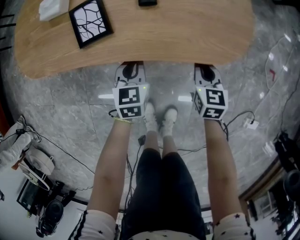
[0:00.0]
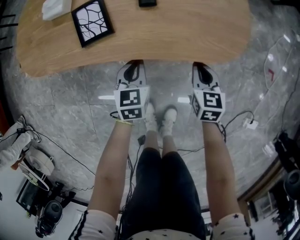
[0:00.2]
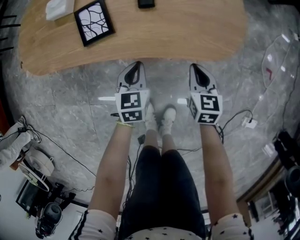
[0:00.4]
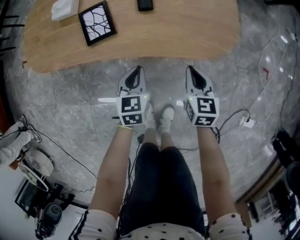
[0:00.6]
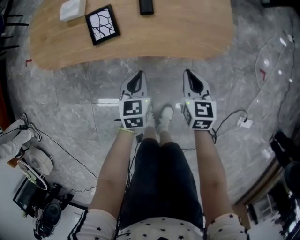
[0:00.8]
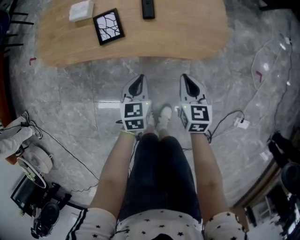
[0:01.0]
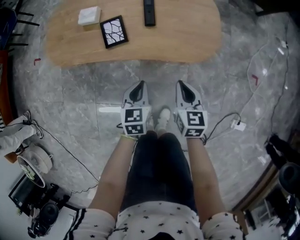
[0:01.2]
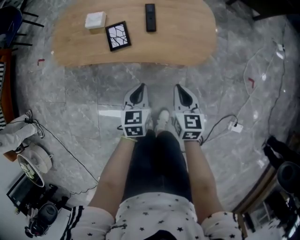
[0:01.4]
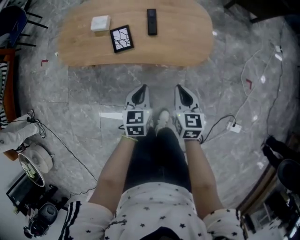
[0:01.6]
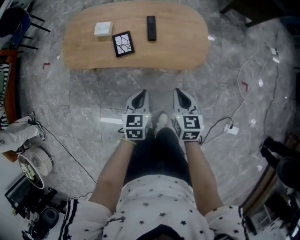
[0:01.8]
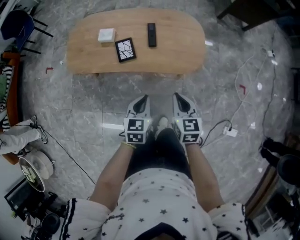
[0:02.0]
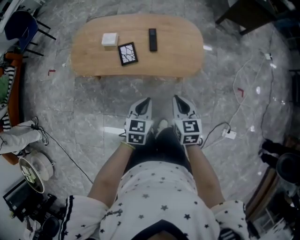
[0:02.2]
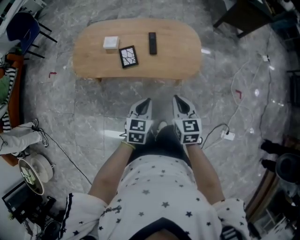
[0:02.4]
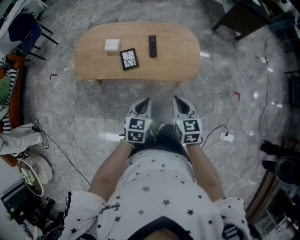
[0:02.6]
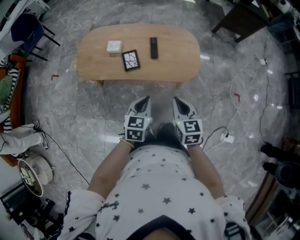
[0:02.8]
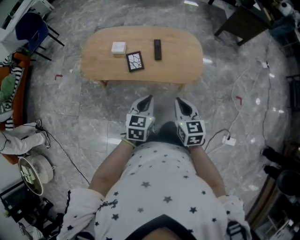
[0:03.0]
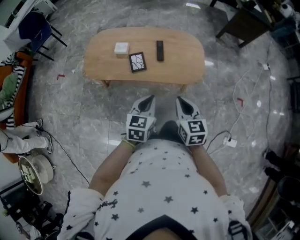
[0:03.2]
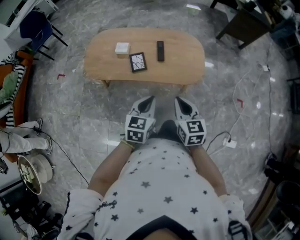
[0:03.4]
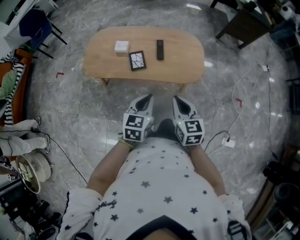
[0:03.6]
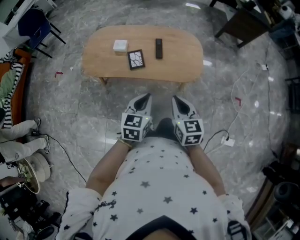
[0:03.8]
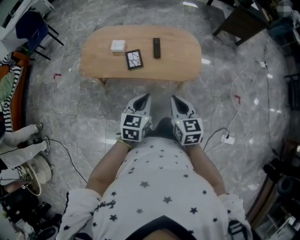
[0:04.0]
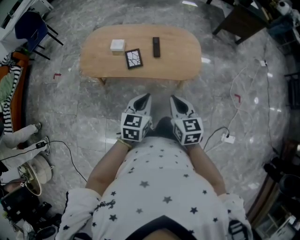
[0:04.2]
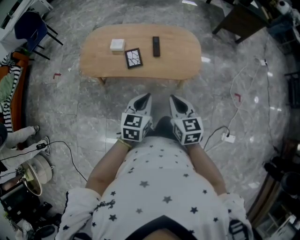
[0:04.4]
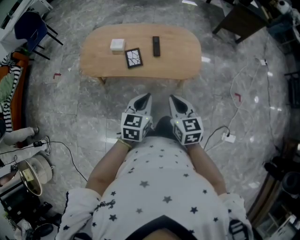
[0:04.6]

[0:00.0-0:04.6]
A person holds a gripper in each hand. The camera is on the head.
0:00.0 to 0:01.6: The right gripper moves upward, about 30 cm. Meanwhile the left gripper shifts some 30 cm upward and backward.
0:01.6 to 0:03.0: The two grippers go about 15 cm upward.
0:03.0 to 0:04.6: The grippers stay close to where they were, moving slightly.

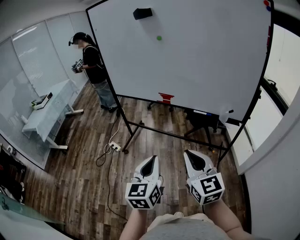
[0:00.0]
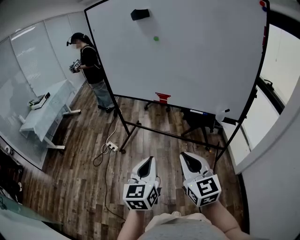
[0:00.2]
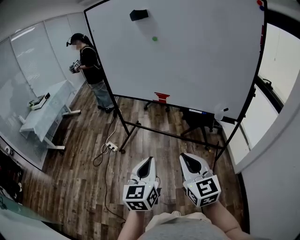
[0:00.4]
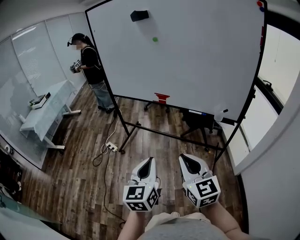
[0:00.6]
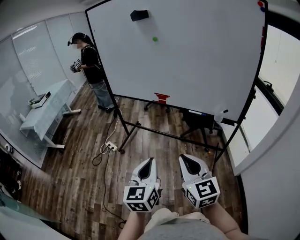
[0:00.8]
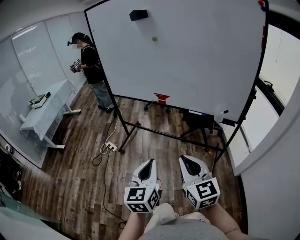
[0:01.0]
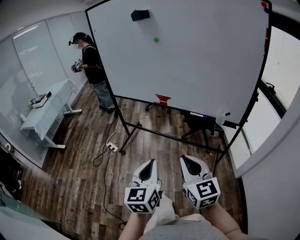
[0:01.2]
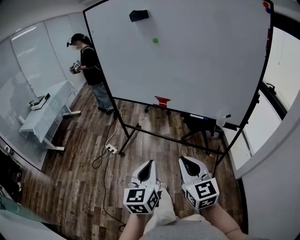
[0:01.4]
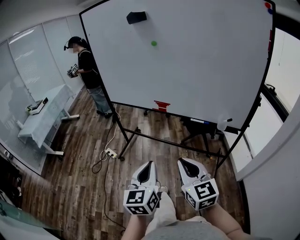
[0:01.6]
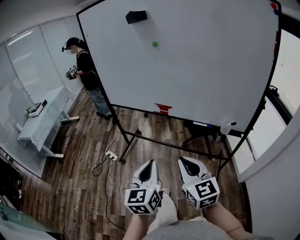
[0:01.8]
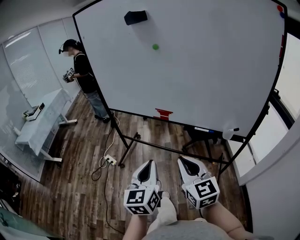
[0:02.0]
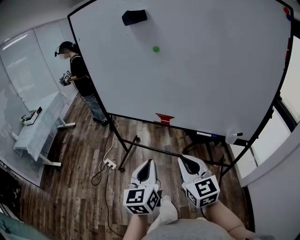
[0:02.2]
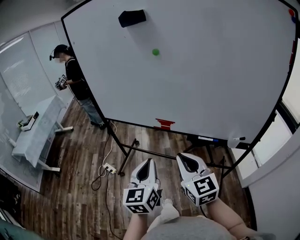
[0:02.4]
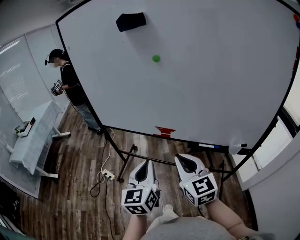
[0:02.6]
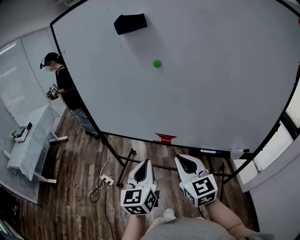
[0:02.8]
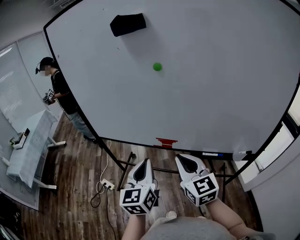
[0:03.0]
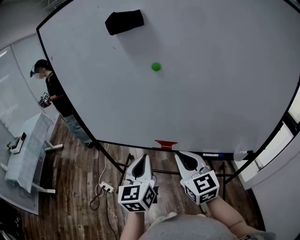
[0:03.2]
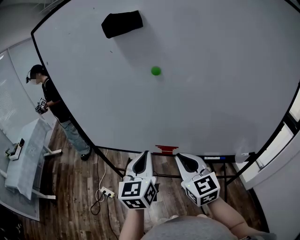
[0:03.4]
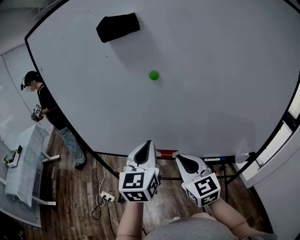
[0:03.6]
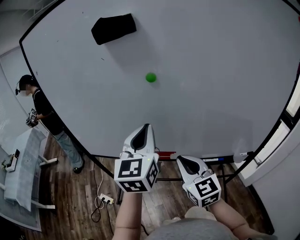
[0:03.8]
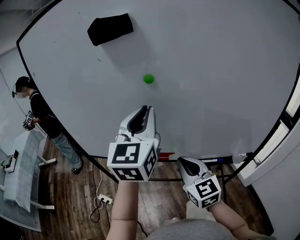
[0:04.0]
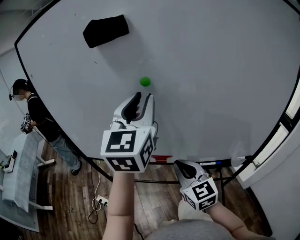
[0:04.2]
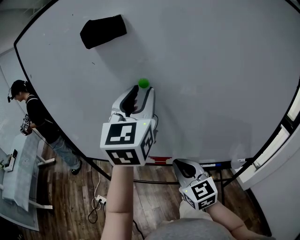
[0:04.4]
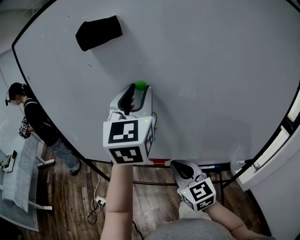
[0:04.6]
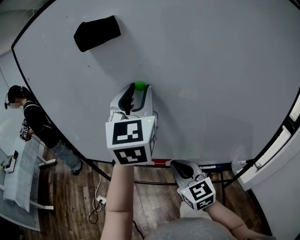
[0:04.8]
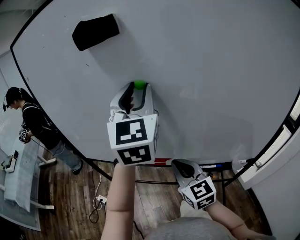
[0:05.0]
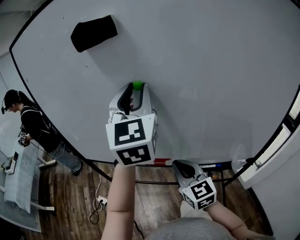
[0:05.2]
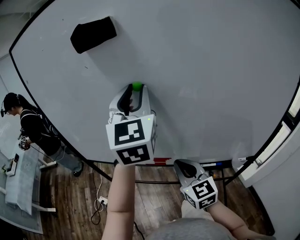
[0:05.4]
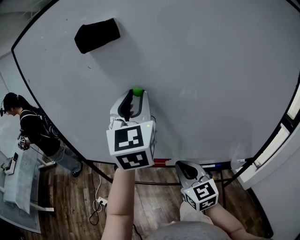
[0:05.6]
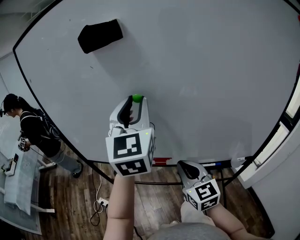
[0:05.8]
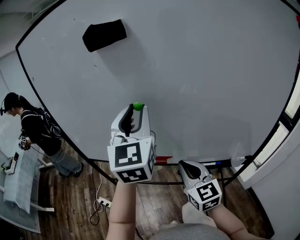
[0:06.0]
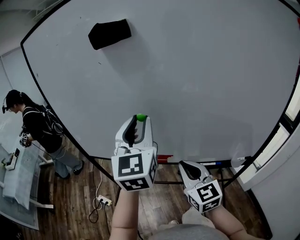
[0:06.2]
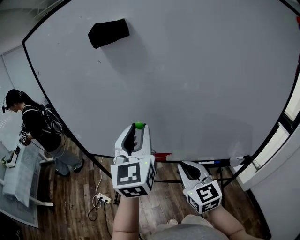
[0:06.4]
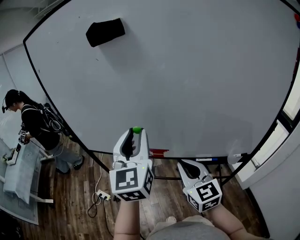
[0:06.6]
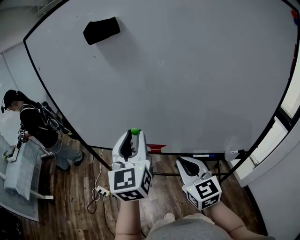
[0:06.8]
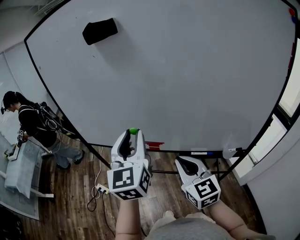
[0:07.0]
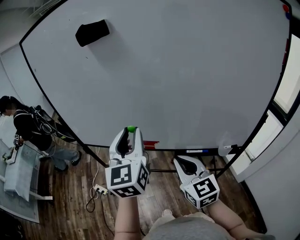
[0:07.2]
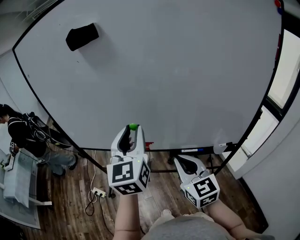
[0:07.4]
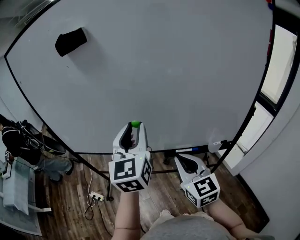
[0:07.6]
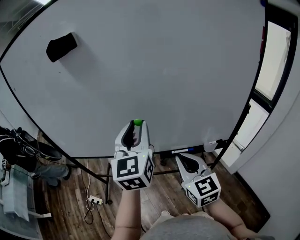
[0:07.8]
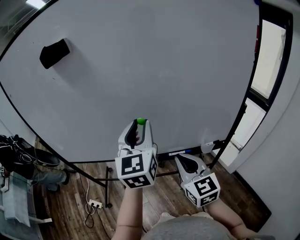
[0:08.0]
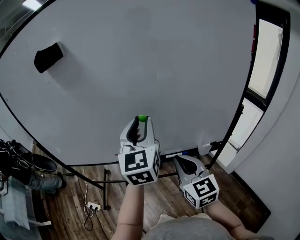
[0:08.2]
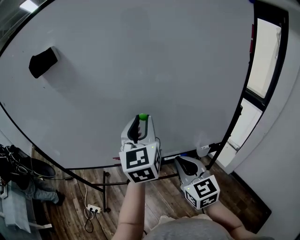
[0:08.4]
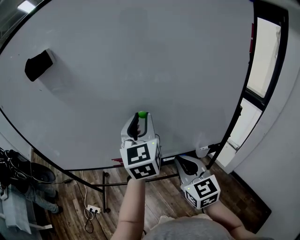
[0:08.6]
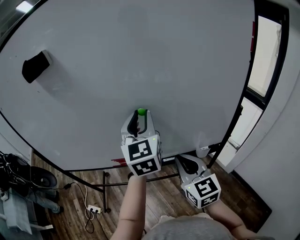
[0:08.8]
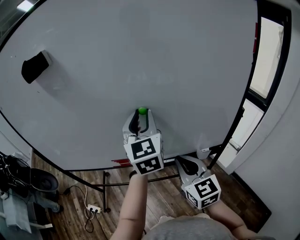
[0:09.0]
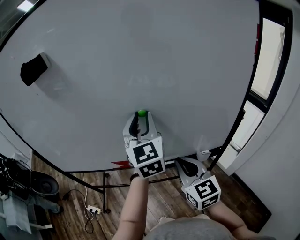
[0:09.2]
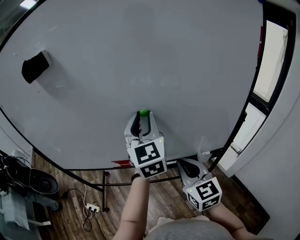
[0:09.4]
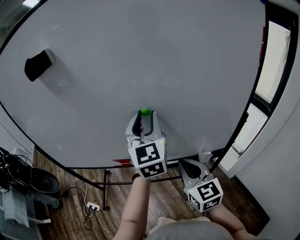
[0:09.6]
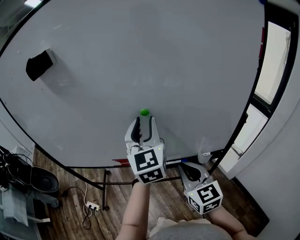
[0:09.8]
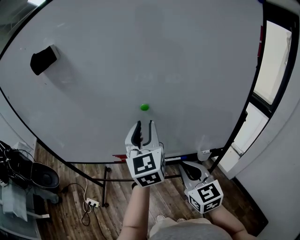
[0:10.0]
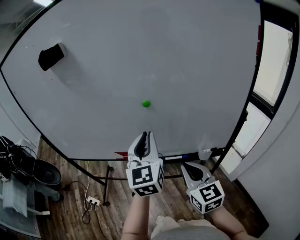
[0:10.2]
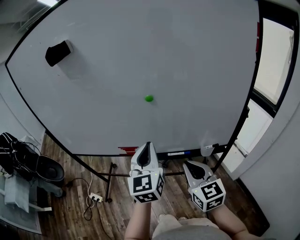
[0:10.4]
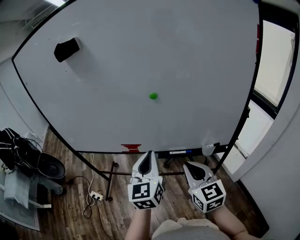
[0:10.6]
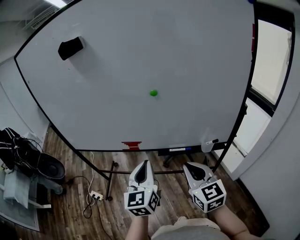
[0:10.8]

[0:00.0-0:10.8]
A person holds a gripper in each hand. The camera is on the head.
0:00.0 to 0:01.6: The grippers stay close to where they were, moving slightly.
0:01.6 to 0:03.0: Both grippers move forward, some 35 cm.
0:03.0 to 0:04.6: The left gripper is displaced upward and forward by roughly 30 cm, swivels roughly 30 degrees, and opens its fingers; the right gripper shifts about 10 cm forward.
0:04.6 to 0:06.2: The left gripper moves downward and backward, about 10 cm.
0:06.2 to 0:07.8: The two grippers go some 15 cm to the right and backward.
0:07.8 to 0:09.2: The right gripper shifts some 5 cm to the right, while the left gripper goes approximately 15 cm to the right and forward.
0:09.2 to 0:10.8: The right gripper goes approximately 10 cm backward. Meanwhile the left gripper shifts some 25 cm backward and downward, and closes.

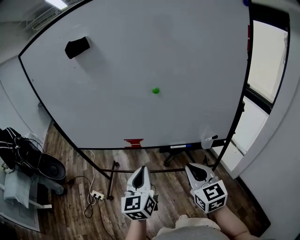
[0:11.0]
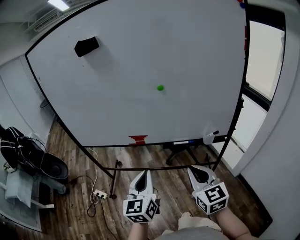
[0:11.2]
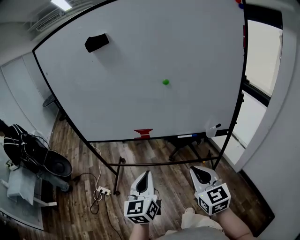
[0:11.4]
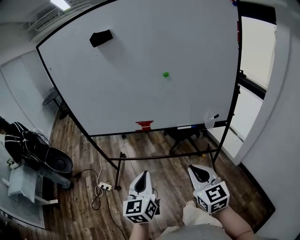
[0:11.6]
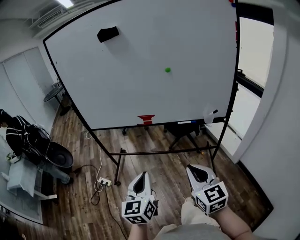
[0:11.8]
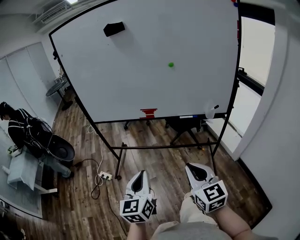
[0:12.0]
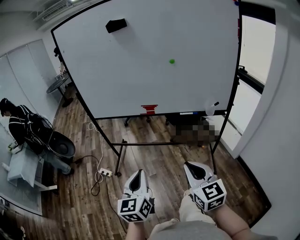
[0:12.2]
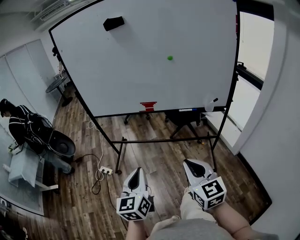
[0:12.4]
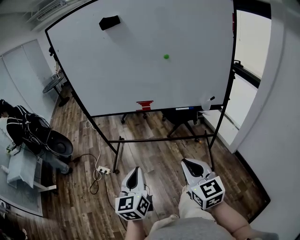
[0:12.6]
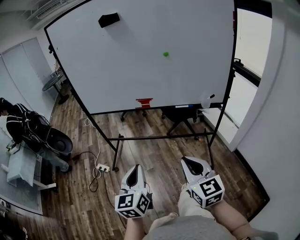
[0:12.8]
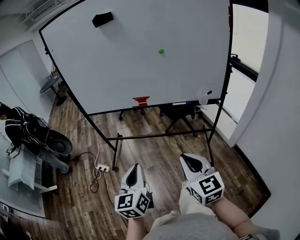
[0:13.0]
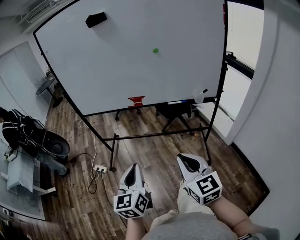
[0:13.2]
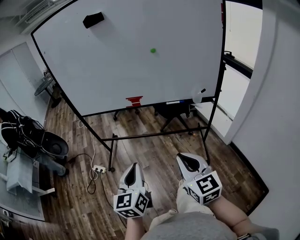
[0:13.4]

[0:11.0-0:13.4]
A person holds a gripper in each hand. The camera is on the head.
0:11.0 to 0:12.2: Both grippers travel together backward and to the left, approximately 30 cm.
0:12.2 to 0:13.4: The grippers make only small movements.

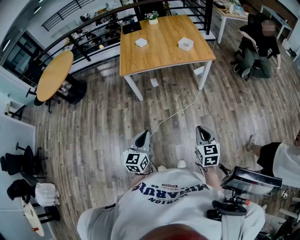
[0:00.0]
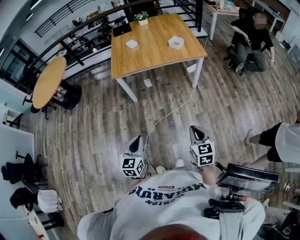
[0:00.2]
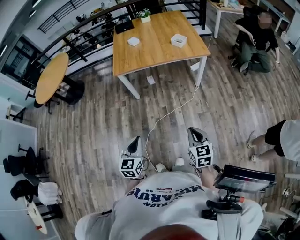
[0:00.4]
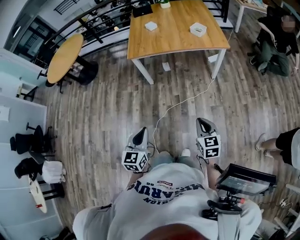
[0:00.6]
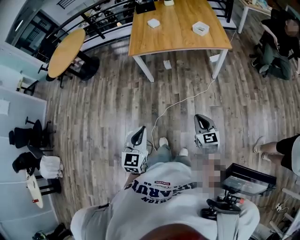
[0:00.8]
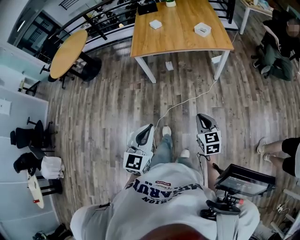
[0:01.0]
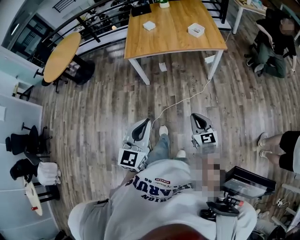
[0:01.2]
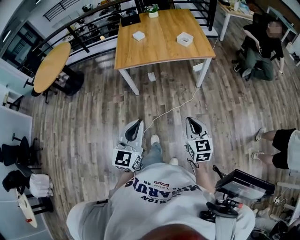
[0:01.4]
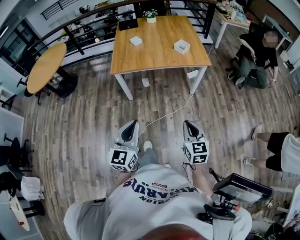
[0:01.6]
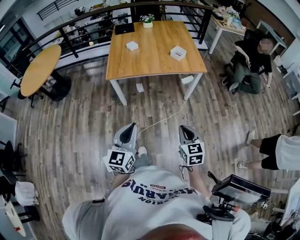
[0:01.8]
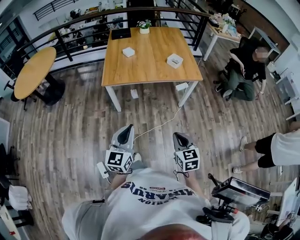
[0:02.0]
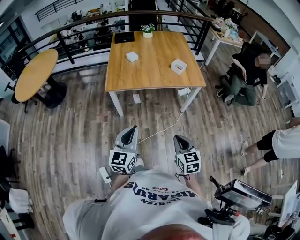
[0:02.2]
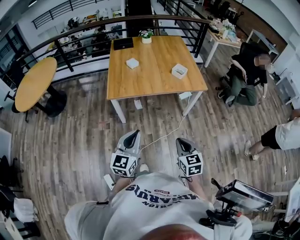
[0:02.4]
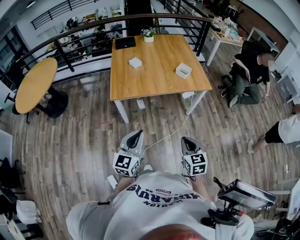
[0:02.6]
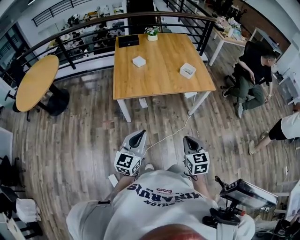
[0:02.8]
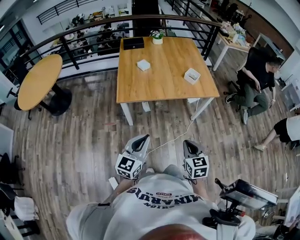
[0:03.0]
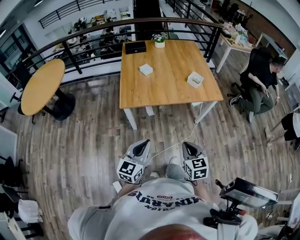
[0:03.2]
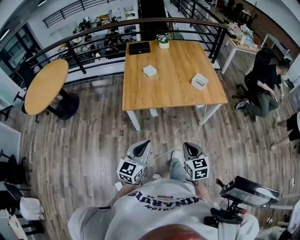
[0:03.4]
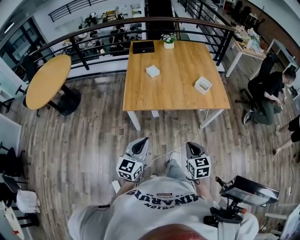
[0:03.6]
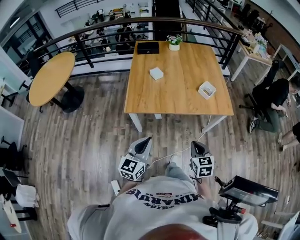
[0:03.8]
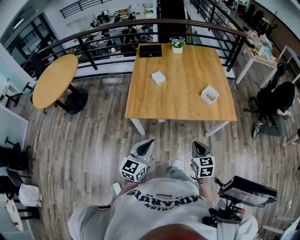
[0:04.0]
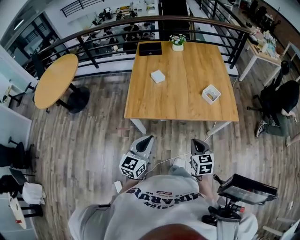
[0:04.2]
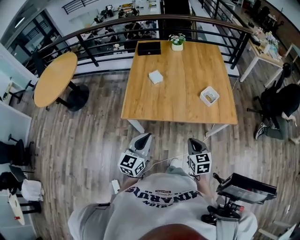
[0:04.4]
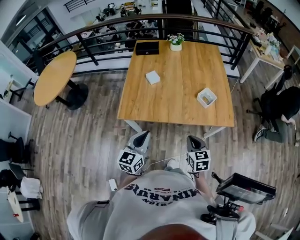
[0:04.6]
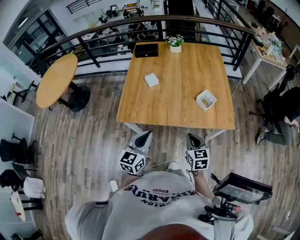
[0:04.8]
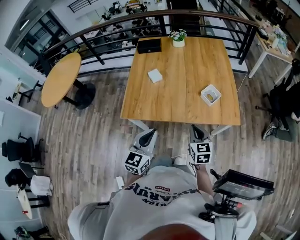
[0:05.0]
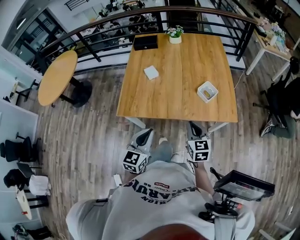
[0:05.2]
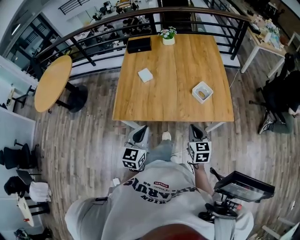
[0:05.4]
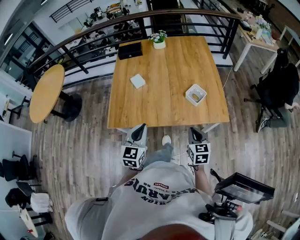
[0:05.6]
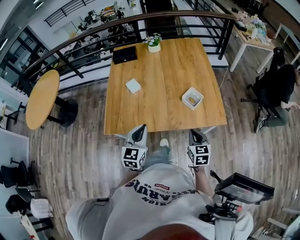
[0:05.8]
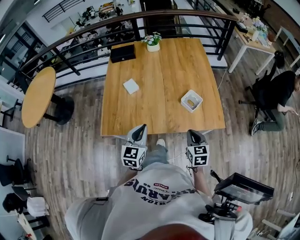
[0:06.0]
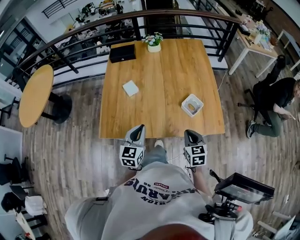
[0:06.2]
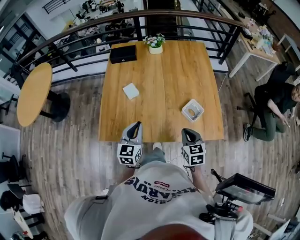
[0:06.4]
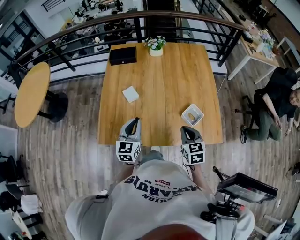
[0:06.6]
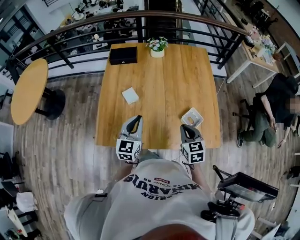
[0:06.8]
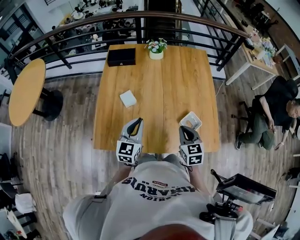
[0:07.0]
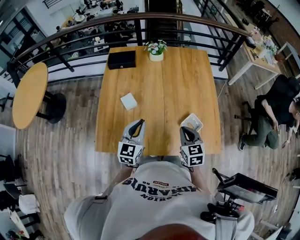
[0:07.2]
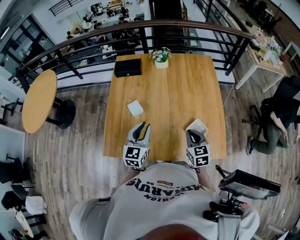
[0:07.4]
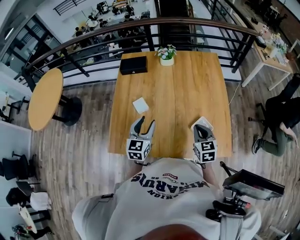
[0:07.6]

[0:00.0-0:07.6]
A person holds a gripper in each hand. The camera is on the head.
0:00.0 to 0:01.6: The right gripper is displaced forward by roughly 10 cm. Meanwhile the left gripper shifts about 10 cm upward and forward.
0:01.6 to 0:03.0: The right gripper goes about 20 cm to the left and forward; the left gripper moves forward and to the left, roughly 20 cm.
0:03.0 to 0:04.6: Both grippers travel together forward, about 30 cm.
0:04.6 to 0:06.0: The grippers both shift forward and to the right by about 15 cm.
0:06.0 to 0:07.6: The grippers both shift forward by approximately 20 cm.
